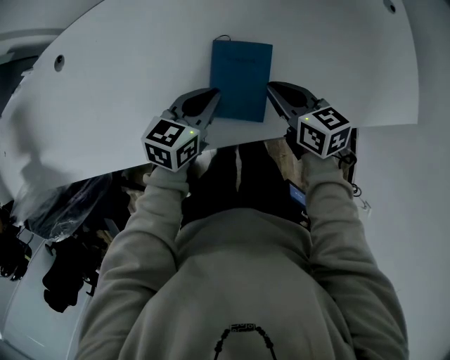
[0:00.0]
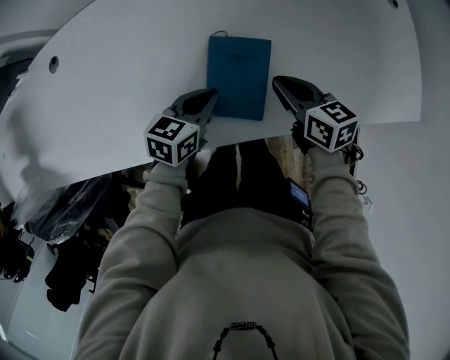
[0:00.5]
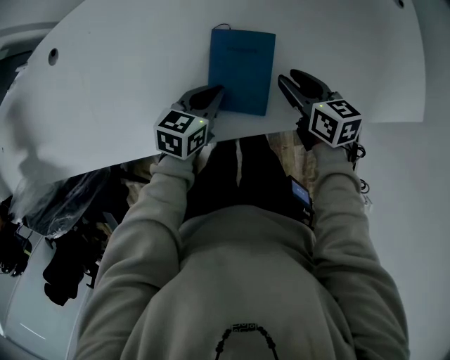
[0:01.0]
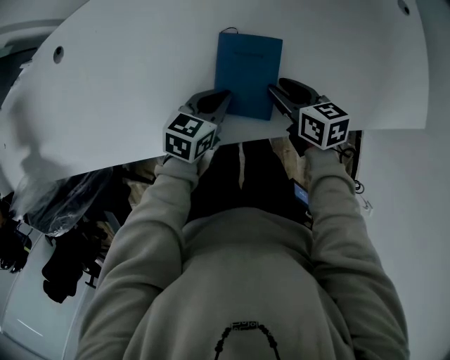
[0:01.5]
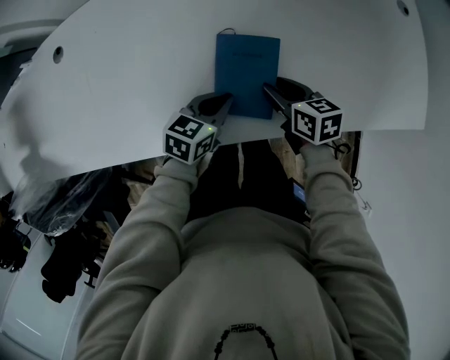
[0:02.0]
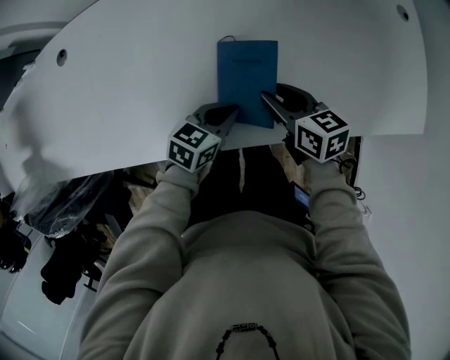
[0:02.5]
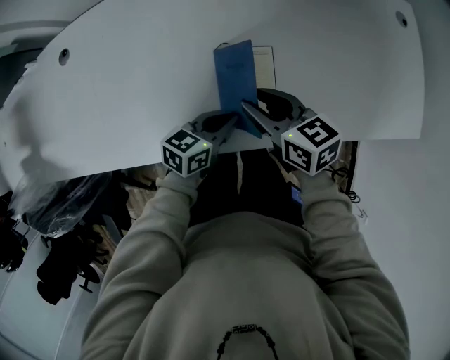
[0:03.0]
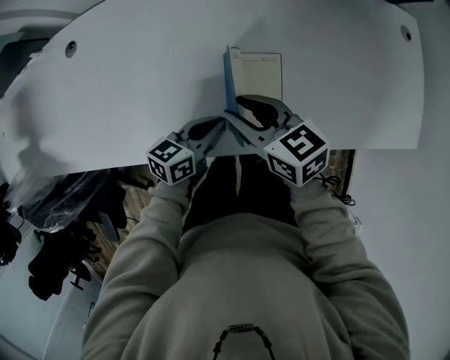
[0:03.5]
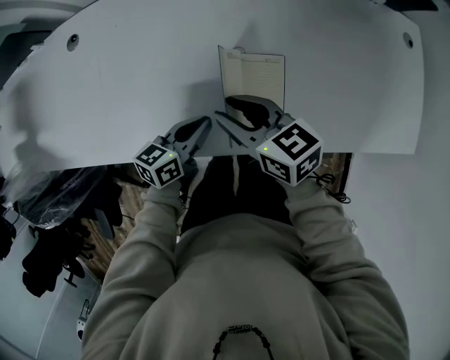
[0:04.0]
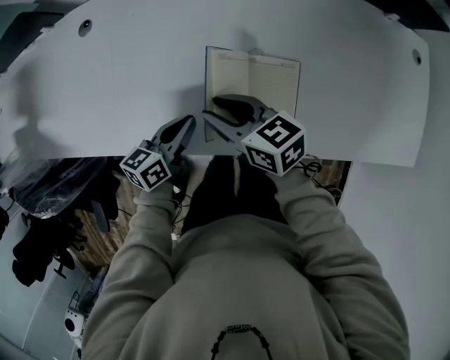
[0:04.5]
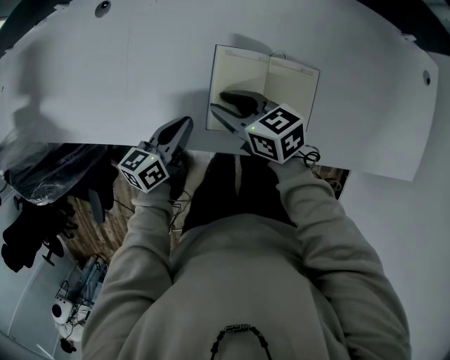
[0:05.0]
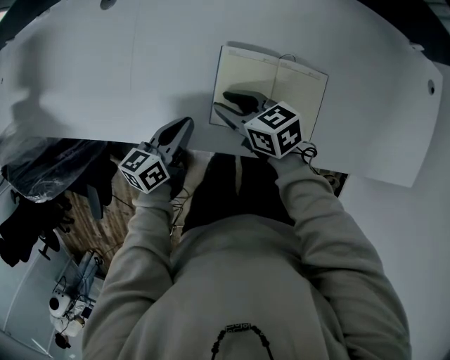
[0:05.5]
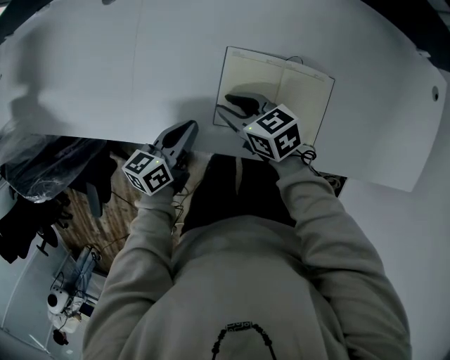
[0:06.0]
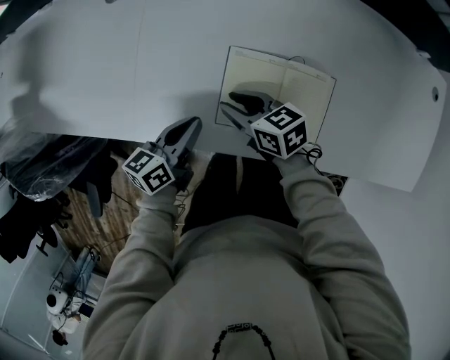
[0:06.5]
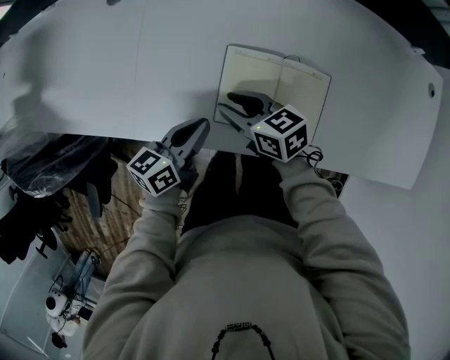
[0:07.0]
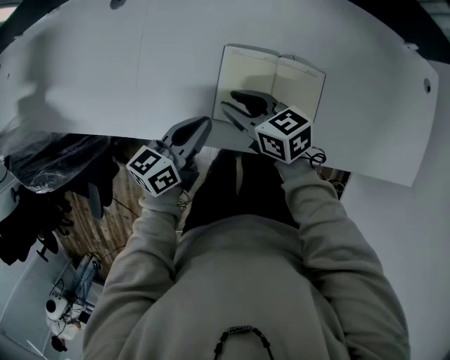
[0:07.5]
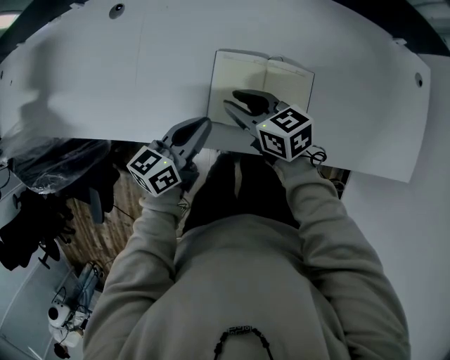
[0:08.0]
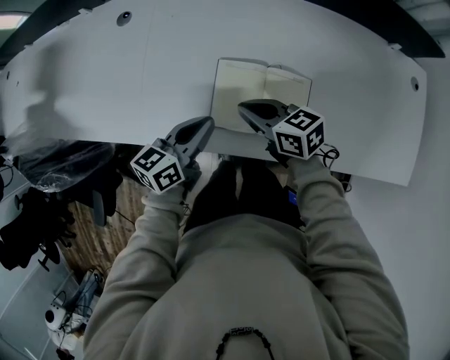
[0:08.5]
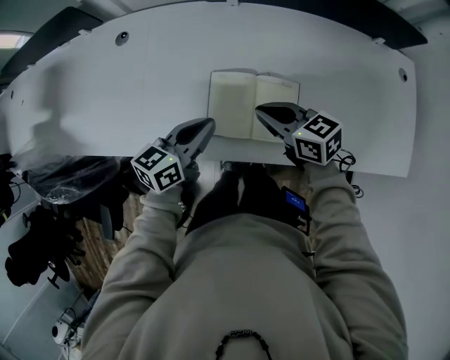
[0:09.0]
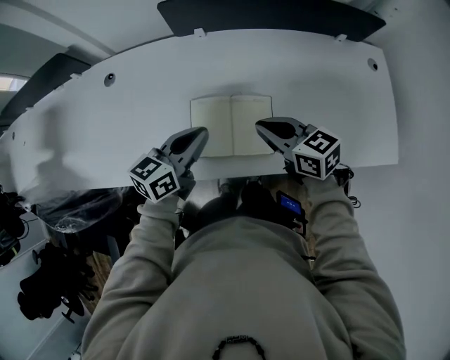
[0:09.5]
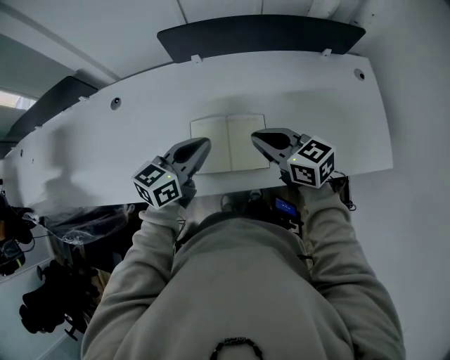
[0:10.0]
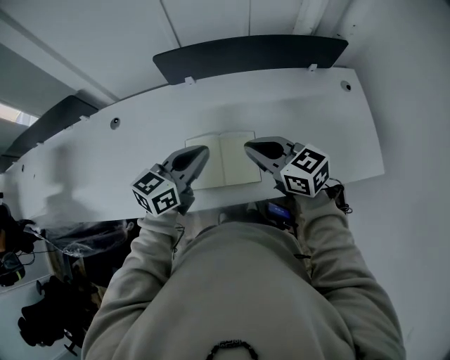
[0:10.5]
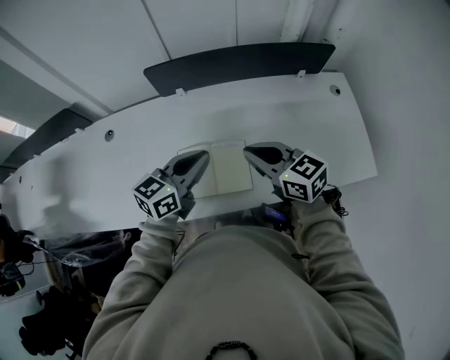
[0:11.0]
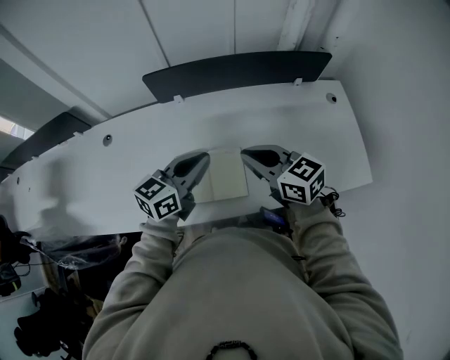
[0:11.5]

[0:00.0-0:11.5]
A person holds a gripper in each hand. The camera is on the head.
0:00.0 to 0:02.0: The grippers both shift downward by some 5 cm. The right gripper opens its fingers.
0:02.0 to 0:04.0: The right gripper heads to the left and upward, covering approximately 20 cm, and swivels roughly 20 degrees, while the left gripper travels to the left by some 10 cm, and turns by about 20 degrees.
0:04.0 to 0:06.0: The left gripper moves to the left, about 15 cm. Meanwhile the right gripper moves to the left and downward, approximately 15 cm.
0:06.0 to 0:07.5: The grippers both shift upward by roughly 5 cm.
0:07.5 to 0:09.5: The right gripper moves to the right and upward, roughly 20 cm, and closes, while the left gripper moves upward and to the right, about 15 cm.
0:09.5 to 0:11.5: Both grippers move upward and to the right, approximately 15 cm.

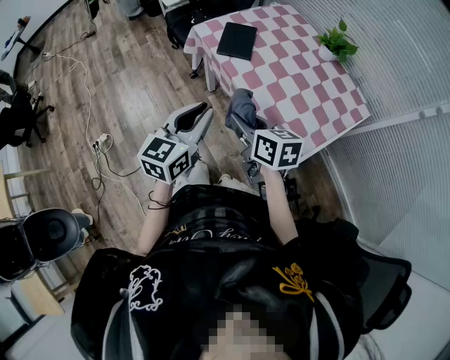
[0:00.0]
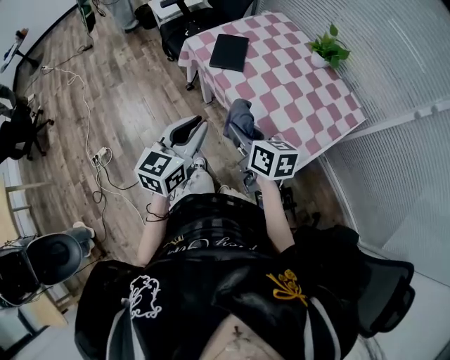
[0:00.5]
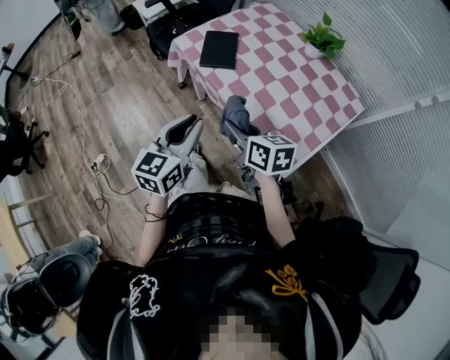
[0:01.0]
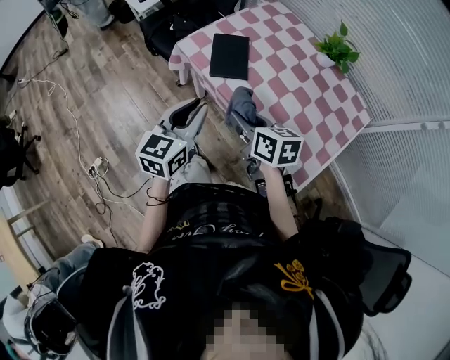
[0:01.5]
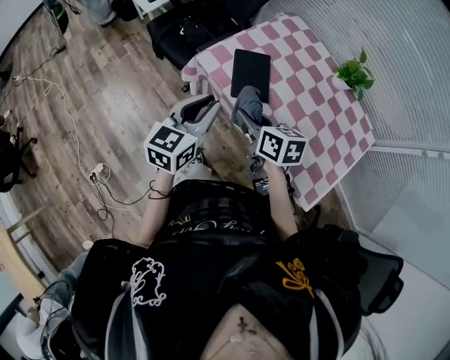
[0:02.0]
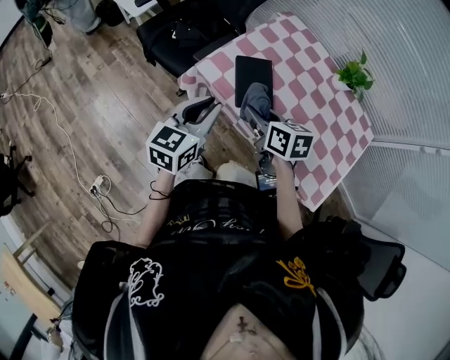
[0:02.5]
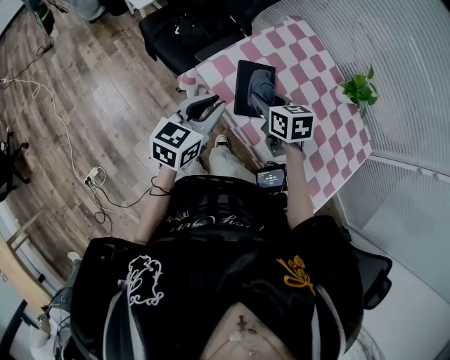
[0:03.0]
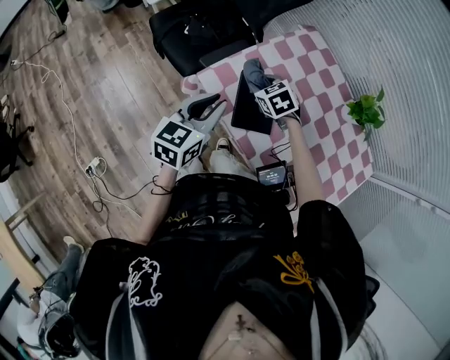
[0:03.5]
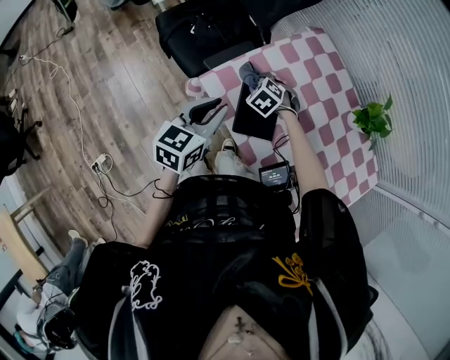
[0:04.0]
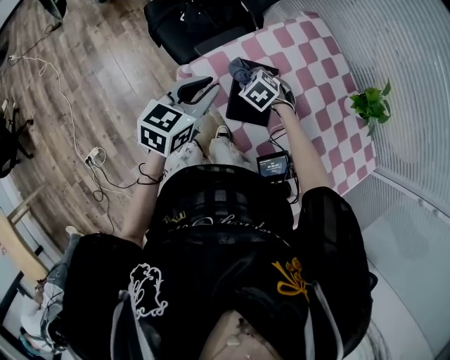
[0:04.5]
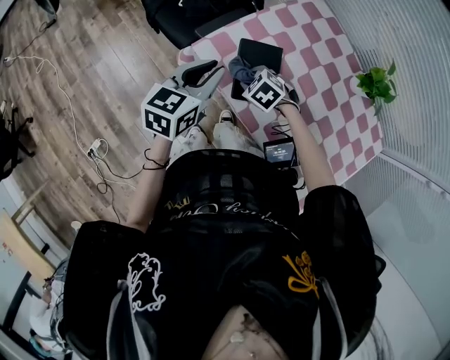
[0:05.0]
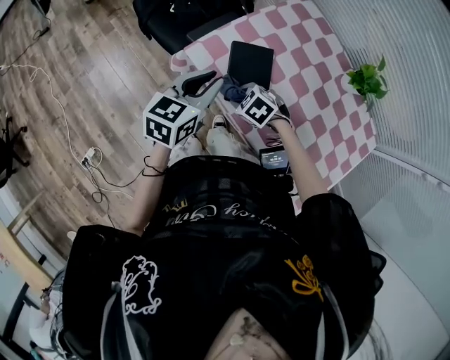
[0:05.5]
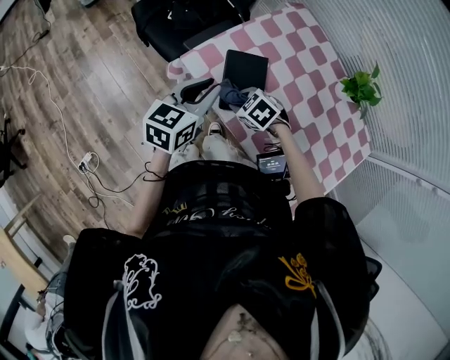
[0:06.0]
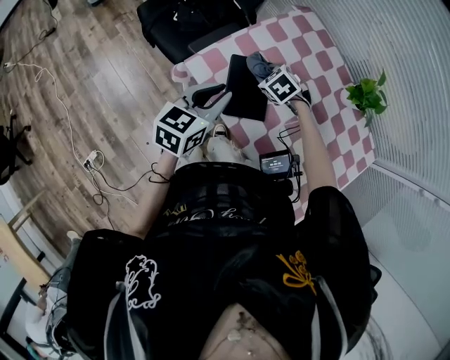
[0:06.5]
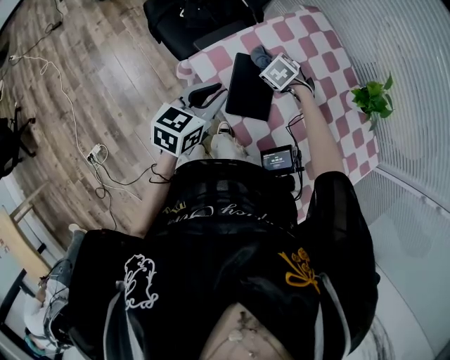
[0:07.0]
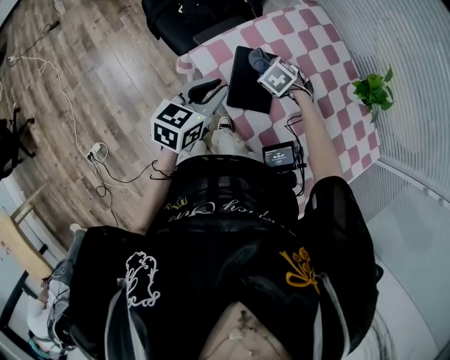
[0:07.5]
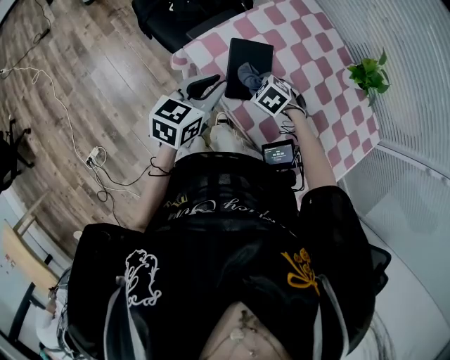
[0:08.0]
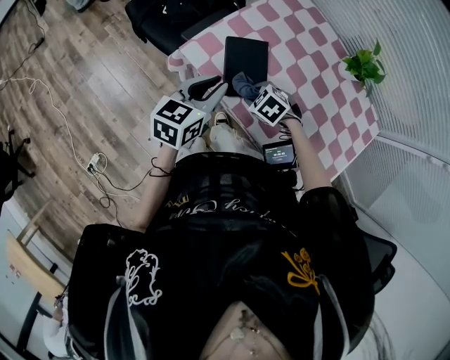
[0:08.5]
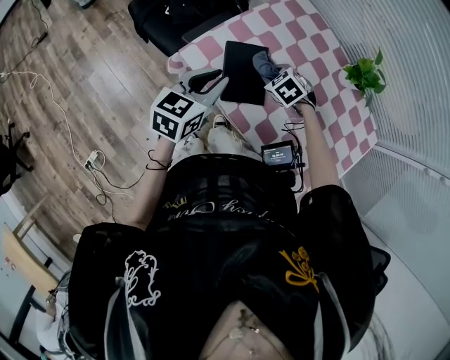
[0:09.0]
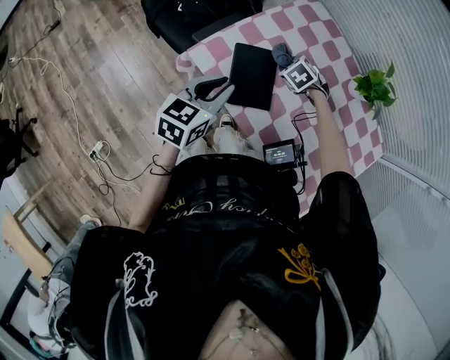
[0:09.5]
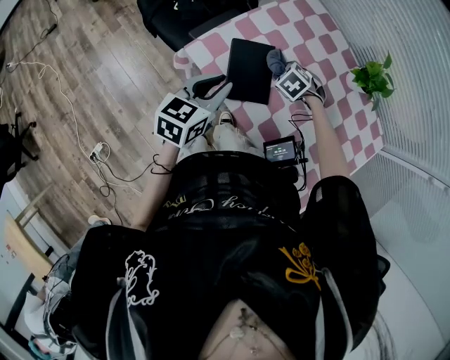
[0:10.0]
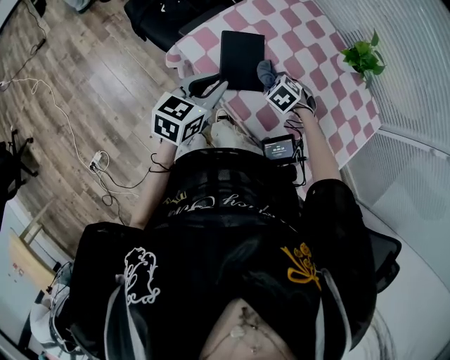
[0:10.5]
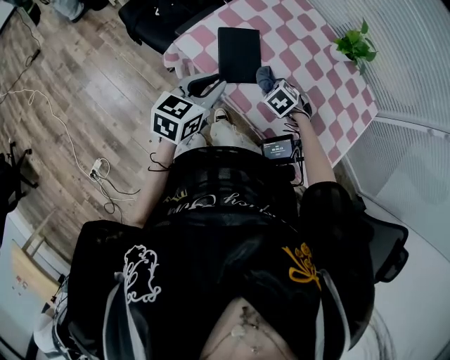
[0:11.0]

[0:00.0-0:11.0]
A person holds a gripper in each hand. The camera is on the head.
0:00.0 to 0:02.0: The grippers both shift forward by about 25 cm.
0:02.0 to 0:03.5: The right gripper shifts approximately 30 cm forward and downward, and rolls counterclockwise, seen from behind, by about 40 degrees. The left gripper moves forward, roughly 15 cm.
0:03.5 to 0:05.5: The right gripper goes approximately 15 cm backward and downward, and turns by roughly 20 degrees.
0:05.5 to 0:07.5: The right gripper ends up some 15 cm from where it was.
0:09.0 to 0:11.0: The left gripper ends up about 10 cm from where it was; the right gripper ends up some 15 cm from where it was.

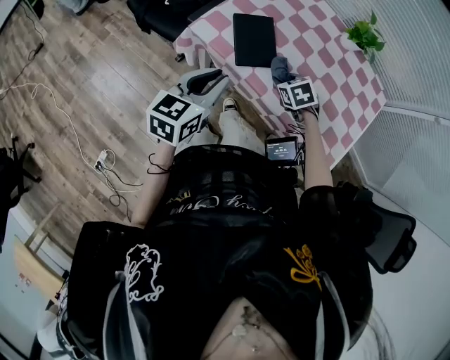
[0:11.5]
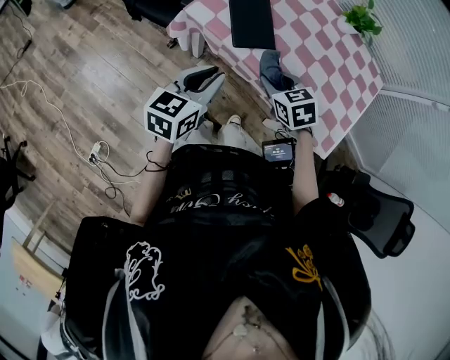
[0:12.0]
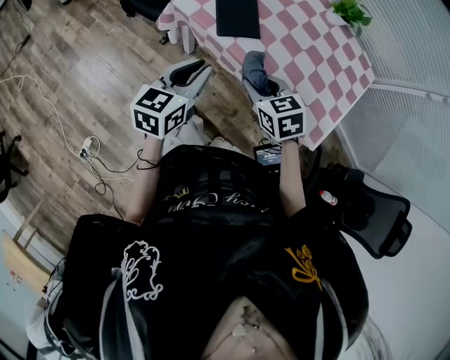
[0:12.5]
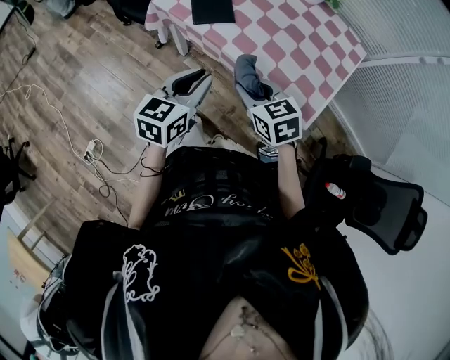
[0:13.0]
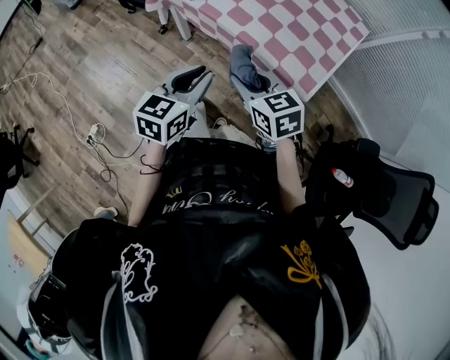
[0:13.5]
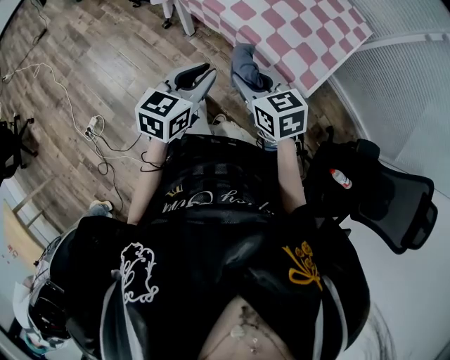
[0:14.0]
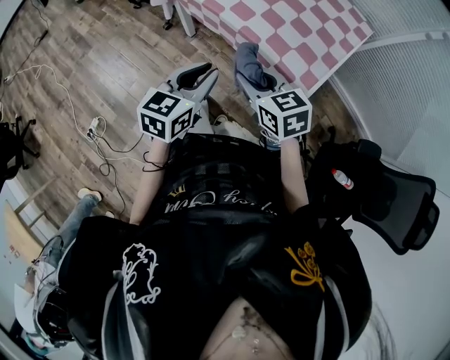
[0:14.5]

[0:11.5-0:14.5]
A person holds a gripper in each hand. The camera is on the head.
0:11.5 to 0:13.0: The left gripper is displaced backward and to the right by some 20 cm, while the right gripper heads backward and upward, covering about 25 cm, and turns by roughly 30 degrees.
0:13.0 to 0:14.5: Both grippers move backward, approximately 10 cm.

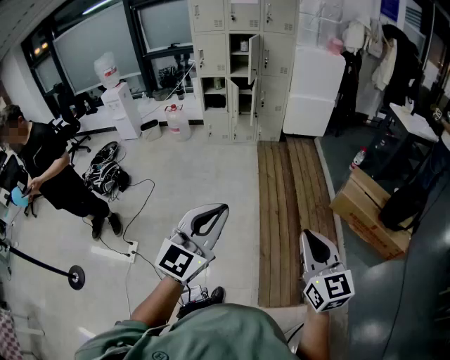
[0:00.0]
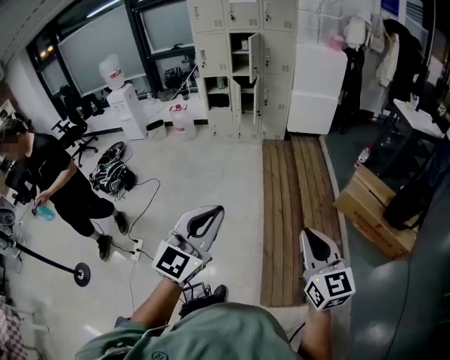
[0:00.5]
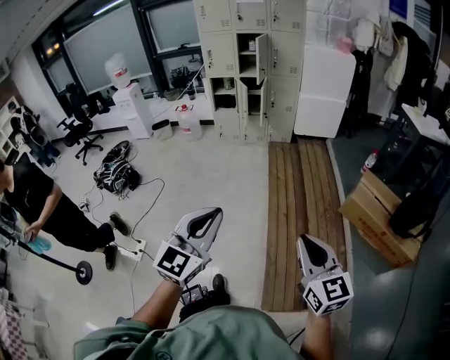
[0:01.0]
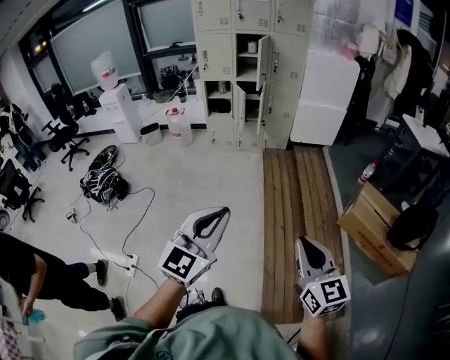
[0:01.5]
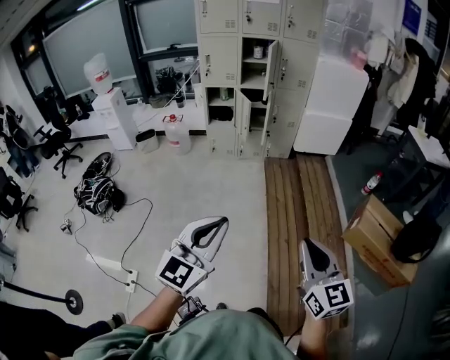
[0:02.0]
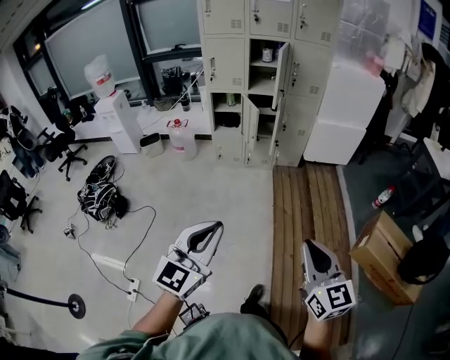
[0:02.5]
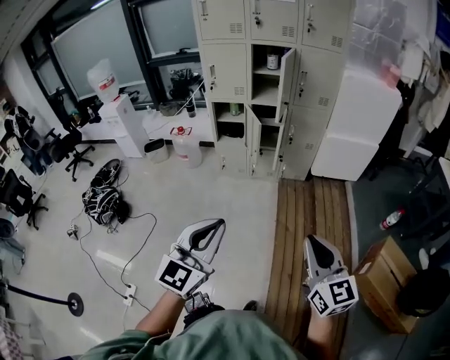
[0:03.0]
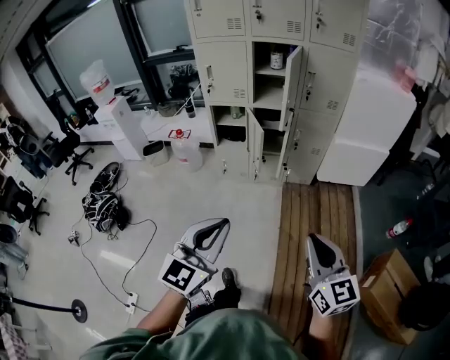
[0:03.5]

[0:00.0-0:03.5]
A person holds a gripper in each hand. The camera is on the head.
0:00.0 to 0:02.0: The grippers both shift forward and to the left by about 30 cm.
0:02.0 to 0:03.5: The two grippers go roughly 40 cm forward.
